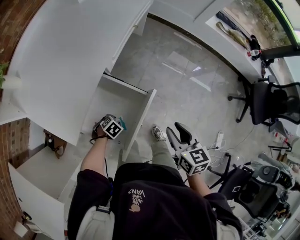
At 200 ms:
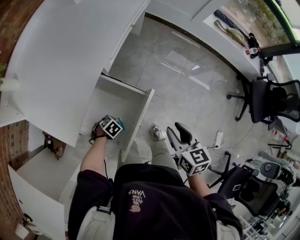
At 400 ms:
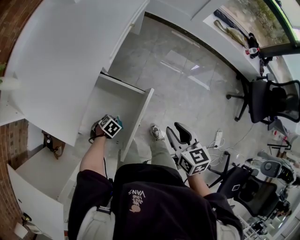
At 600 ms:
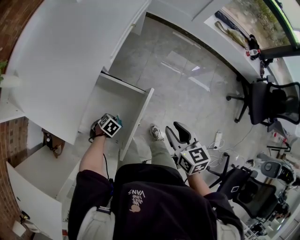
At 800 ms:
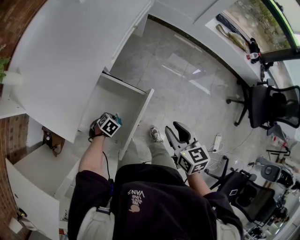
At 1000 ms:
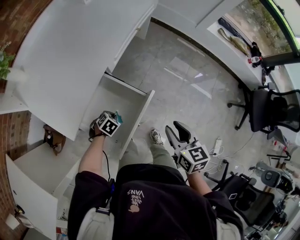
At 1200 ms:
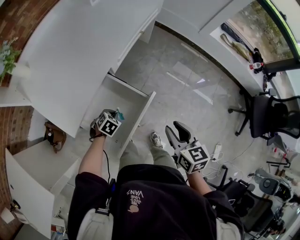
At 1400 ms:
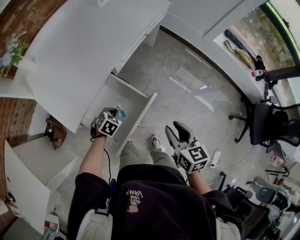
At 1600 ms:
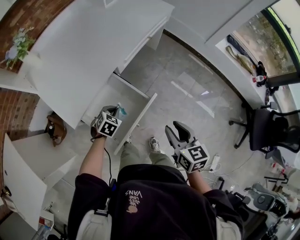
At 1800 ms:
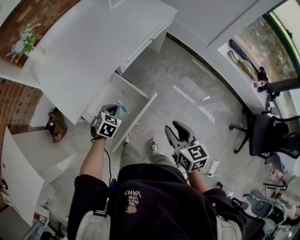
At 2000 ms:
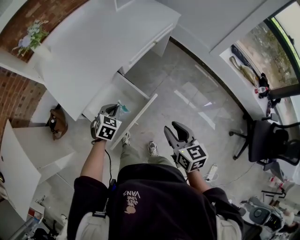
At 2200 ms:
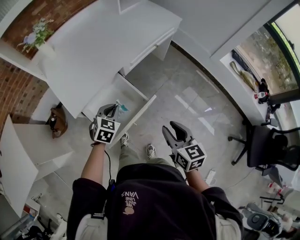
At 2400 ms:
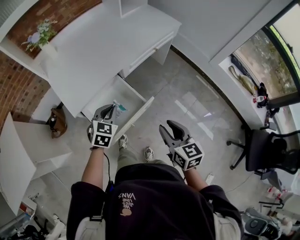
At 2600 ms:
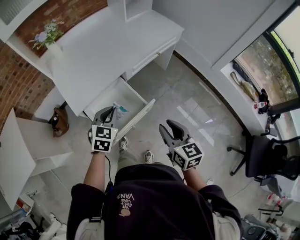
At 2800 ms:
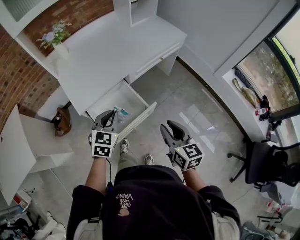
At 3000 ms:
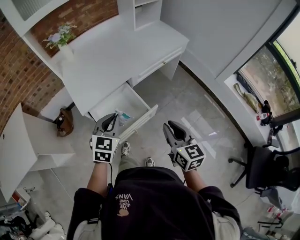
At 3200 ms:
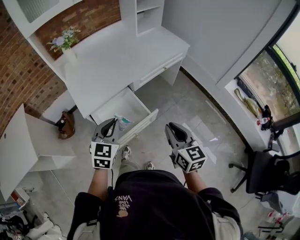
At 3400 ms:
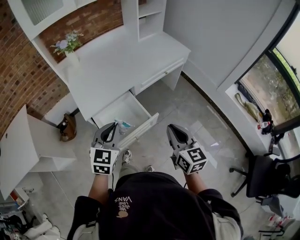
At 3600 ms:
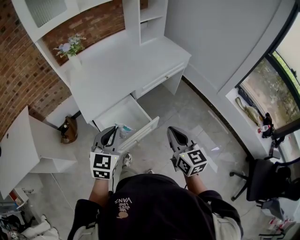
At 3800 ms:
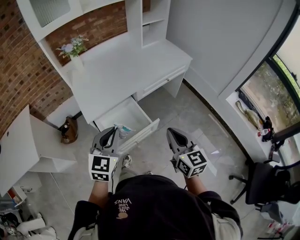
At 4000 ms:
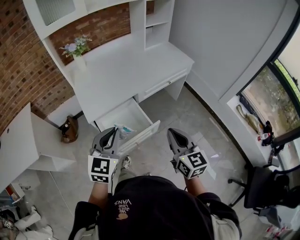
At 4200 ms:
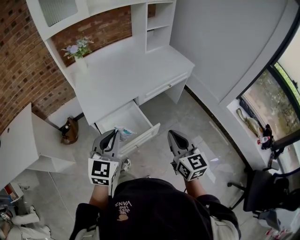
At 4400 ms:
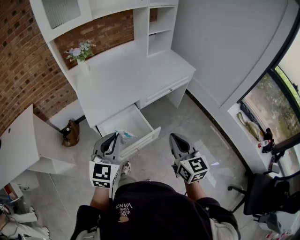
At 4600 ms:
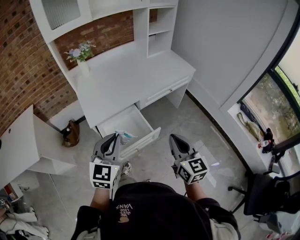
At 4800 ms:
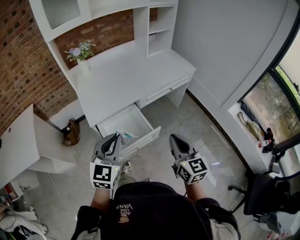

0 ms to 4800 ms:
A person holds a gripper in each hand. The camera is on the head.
0 ms to 1600 ms: The left gripper heads upward, covering about 15 cm, swivels approximately 30 degrees, and closes up.
1600 ms to 3200 ms: The right gripper heads upward, covering some 10 cm, rotates some 20 degrees, and closes up. The left gripper is displaced upward and backward by approximately 30 cm, and angles its fingers upward, by roughly 30 degrees.
3200 ms to 4800 ms: The right gripper moves approximately 5 cm; the left gripper heads upward and backward, covering some 10 cm.

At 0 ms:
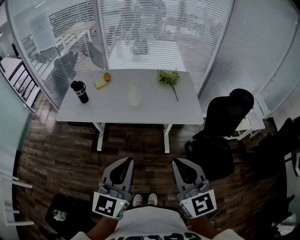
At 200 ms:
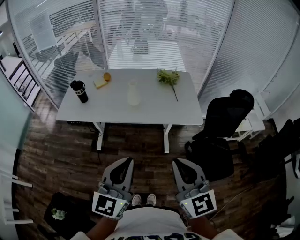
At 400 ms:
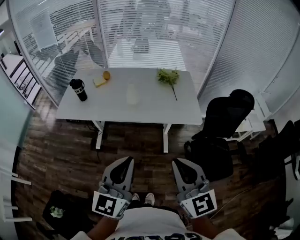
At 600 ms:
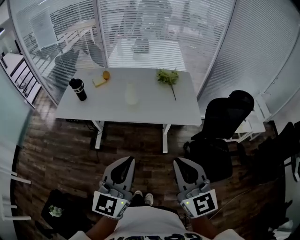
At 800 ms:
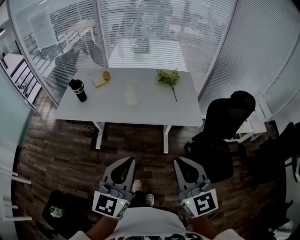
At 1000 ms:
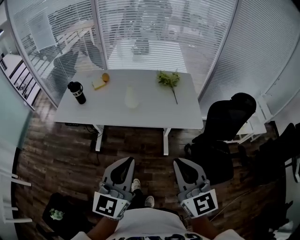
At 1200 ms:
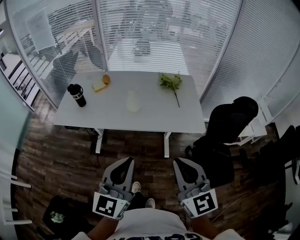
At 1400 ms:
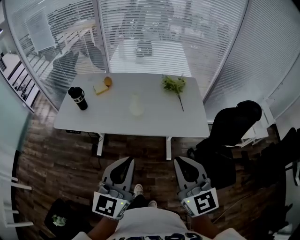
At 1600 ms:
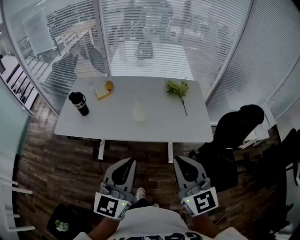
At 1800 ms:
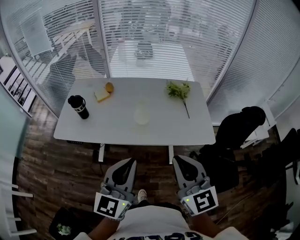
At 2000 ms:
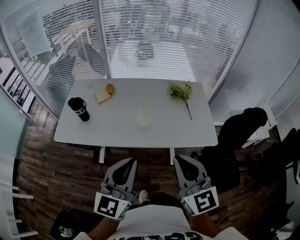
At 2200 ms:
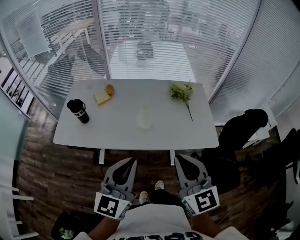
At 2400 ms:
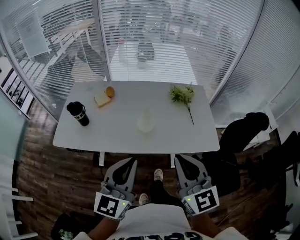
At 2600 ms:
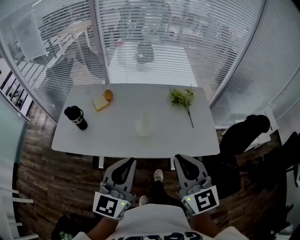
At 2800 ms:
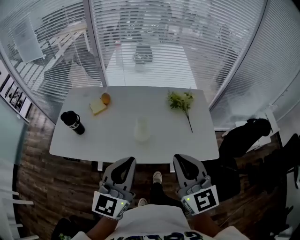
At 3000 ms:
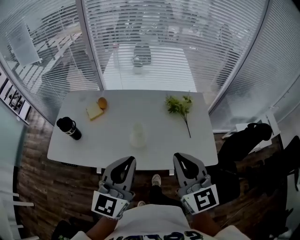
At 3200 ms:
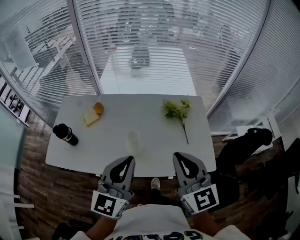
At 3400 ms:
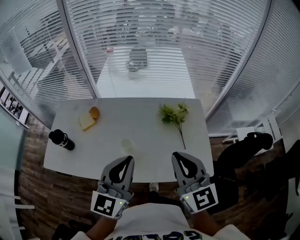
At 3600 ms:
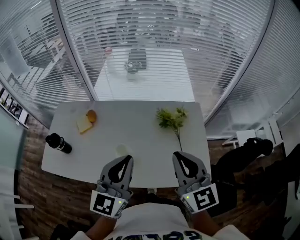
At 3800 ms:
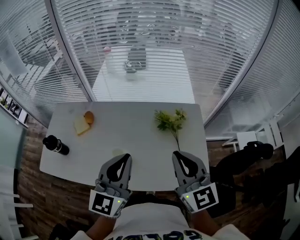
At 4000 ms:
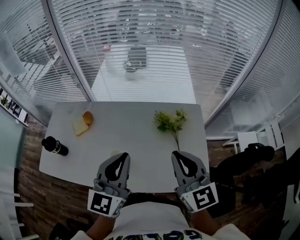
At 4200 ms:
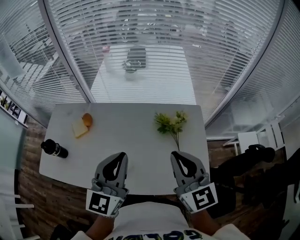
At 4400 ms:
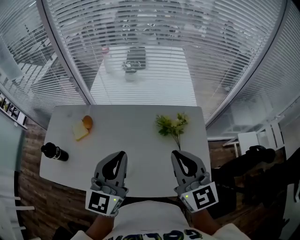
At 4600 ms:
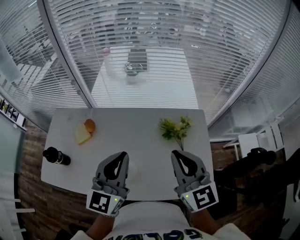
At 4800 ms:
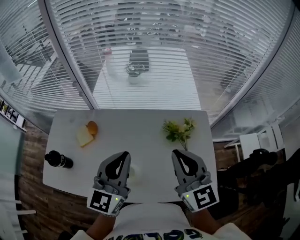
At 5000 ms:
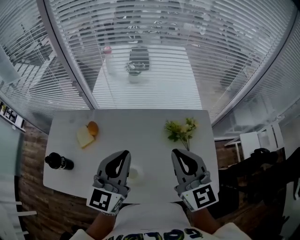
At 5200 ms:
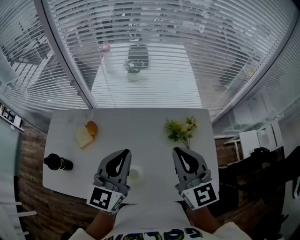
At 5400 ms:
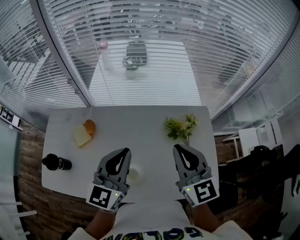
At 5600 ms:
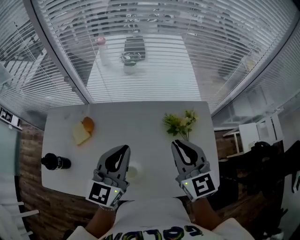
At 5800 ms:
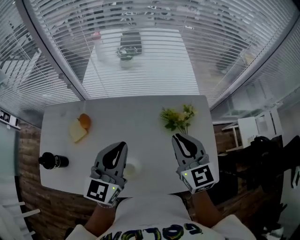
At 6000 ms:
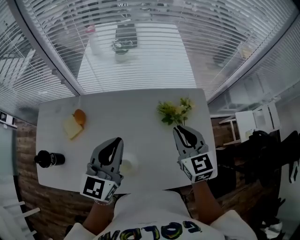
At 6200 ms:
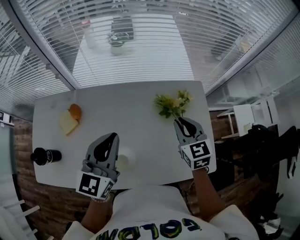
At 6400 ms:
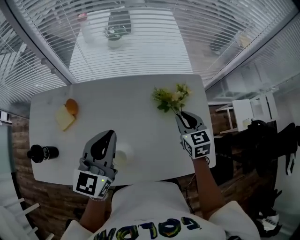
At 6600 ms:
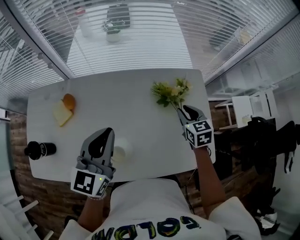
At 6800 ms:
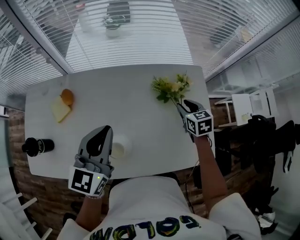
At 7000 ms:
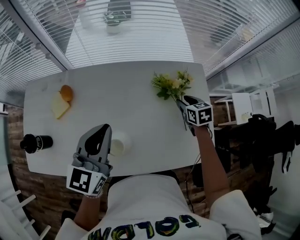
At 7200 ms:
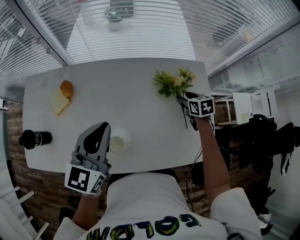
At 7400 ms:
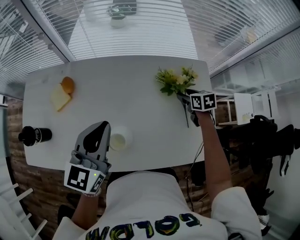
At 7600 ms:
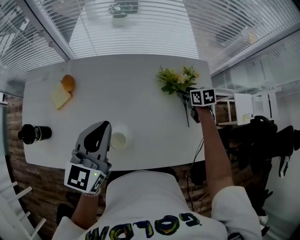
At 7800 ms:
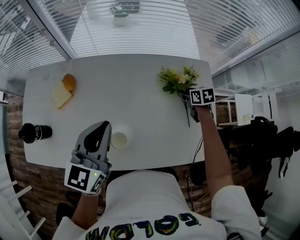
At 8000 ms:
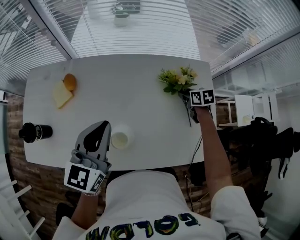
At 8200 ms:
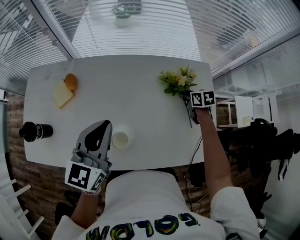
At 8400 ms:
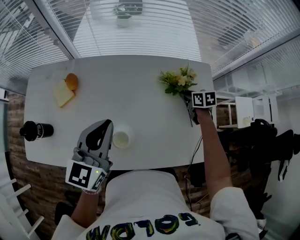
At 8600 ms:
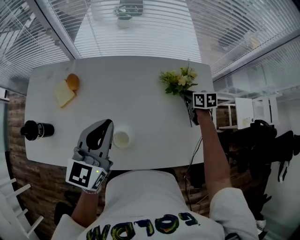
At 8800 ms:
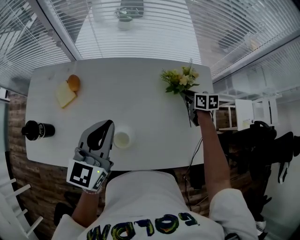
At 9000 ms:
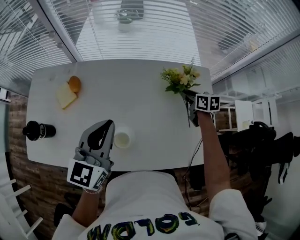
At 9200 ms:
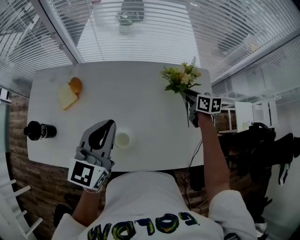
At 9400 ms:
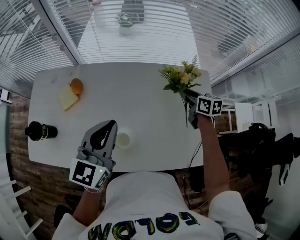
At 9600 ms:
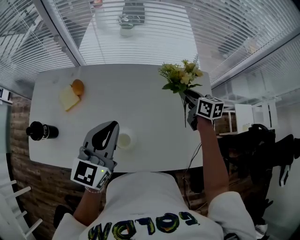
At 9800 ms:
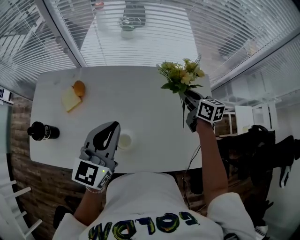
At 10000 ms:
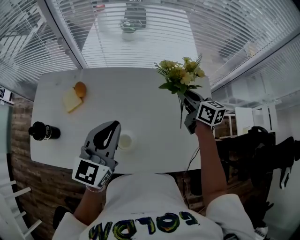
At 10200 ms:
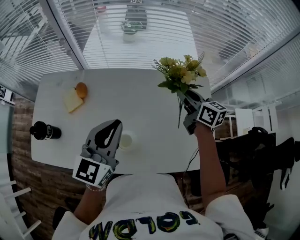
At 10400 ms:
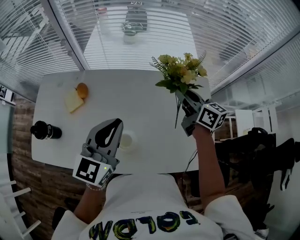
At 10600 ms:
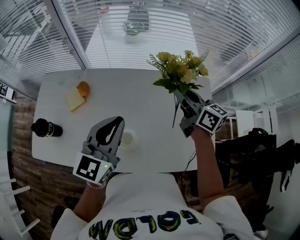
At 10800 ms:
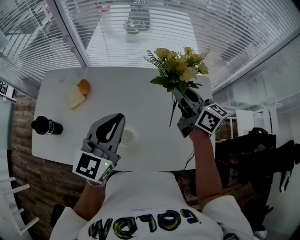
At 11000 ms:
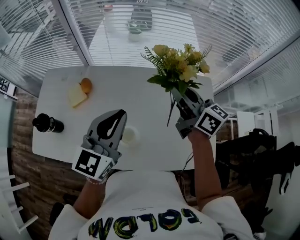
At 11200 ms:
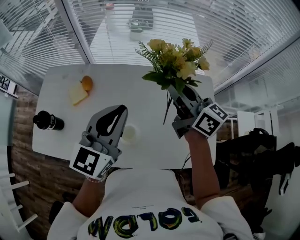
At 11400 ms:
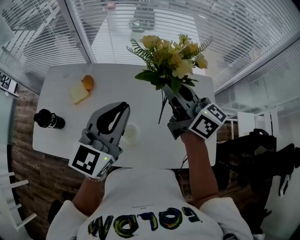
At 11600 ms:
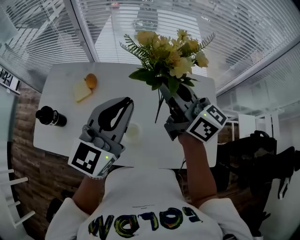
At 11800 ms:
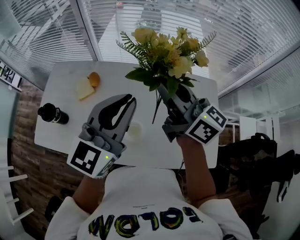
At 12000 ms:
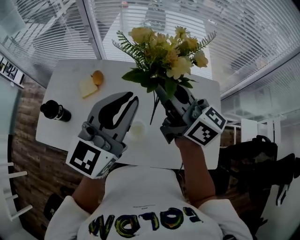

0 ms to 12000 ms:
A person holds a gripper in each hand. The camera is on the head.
0 ms to 1600 ms: The two grippers go roughly 15 cm forward.
1600 ms to 3000 ms: Both grippers move forward, approximately 20 cm.
3000 ms to 4400 ms: The right gripper shifts approximately 20 cm forward and to the right, while the left gripper goes roughly 20 cm forward.
4400 ms to 6000 ms: The left gripper travels forward and downward by about 10 cm. Meanwhile the right gripper travels downward and forward by approximately 15 cm.
6000 ms to 7600 ms: The right gripper travels downward, to the right and forward by approximately 25 cm, points its fingers about 30 degrees further downward, and opens. Meanwhile the left gripper moves roughly 5 cm.
7600 ms to 9000 ms: The right gripper shifts by approximately 5 cm, and closes.
9000 ms to 10400 ms: The right gripper shifts about 20 cm upward and to the left, and points its fingers roughly 30 degrees further upward.
10400 ms to 12000 ms: The right gripper shifts approximately 25 cm to the left, upward and backward, and changes its angle by approximately 30 degrees; the left gripper goes roughly 10 cm upward.

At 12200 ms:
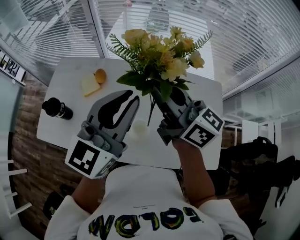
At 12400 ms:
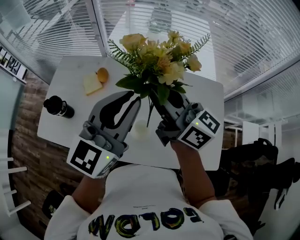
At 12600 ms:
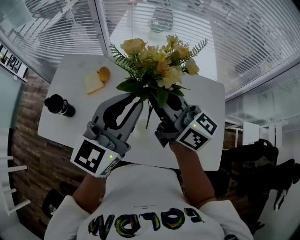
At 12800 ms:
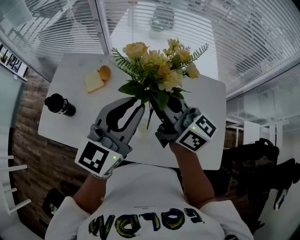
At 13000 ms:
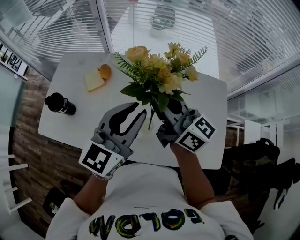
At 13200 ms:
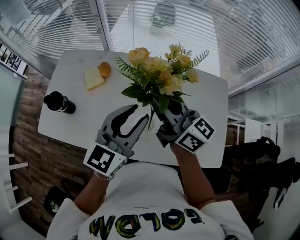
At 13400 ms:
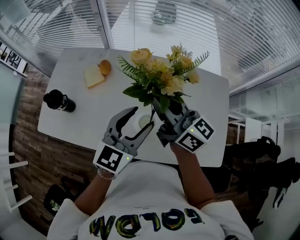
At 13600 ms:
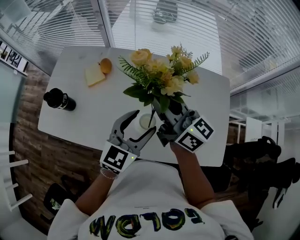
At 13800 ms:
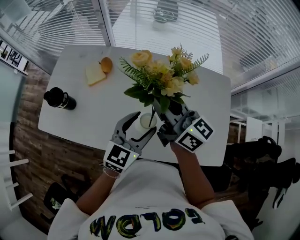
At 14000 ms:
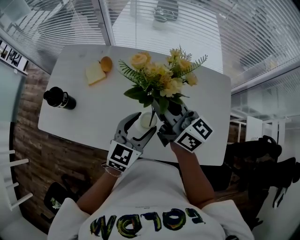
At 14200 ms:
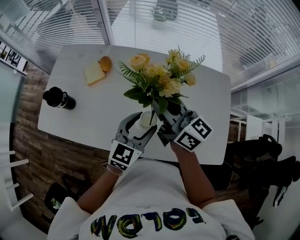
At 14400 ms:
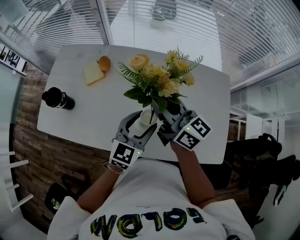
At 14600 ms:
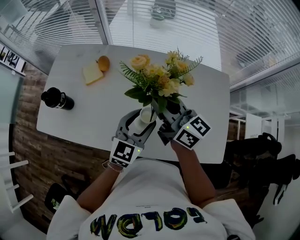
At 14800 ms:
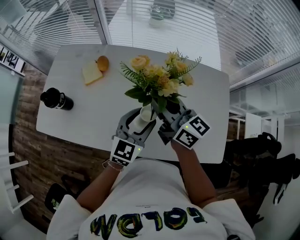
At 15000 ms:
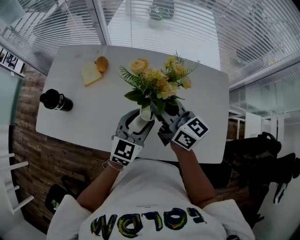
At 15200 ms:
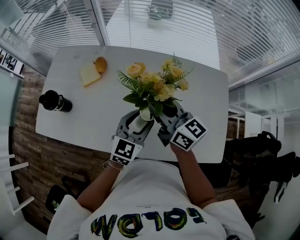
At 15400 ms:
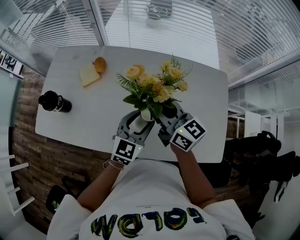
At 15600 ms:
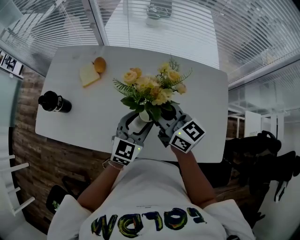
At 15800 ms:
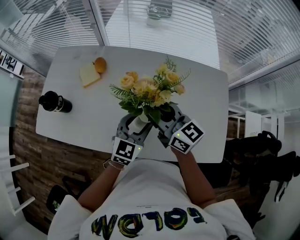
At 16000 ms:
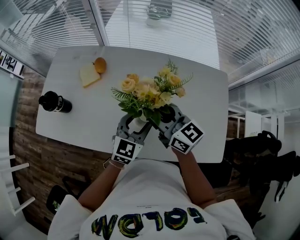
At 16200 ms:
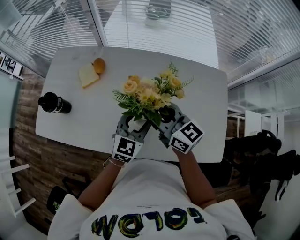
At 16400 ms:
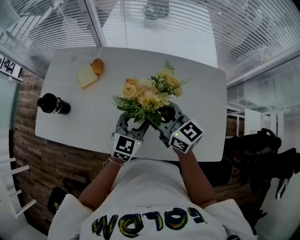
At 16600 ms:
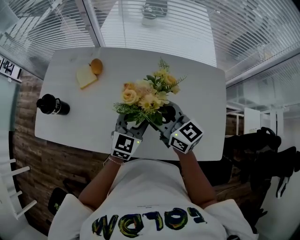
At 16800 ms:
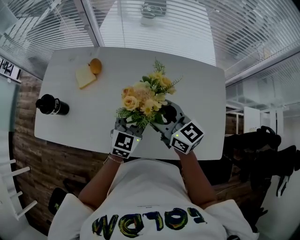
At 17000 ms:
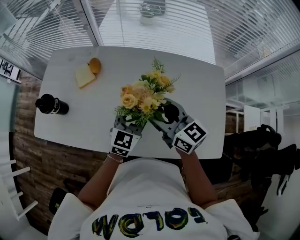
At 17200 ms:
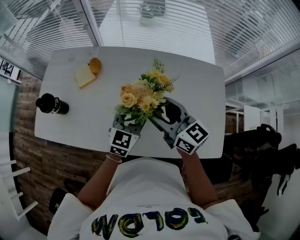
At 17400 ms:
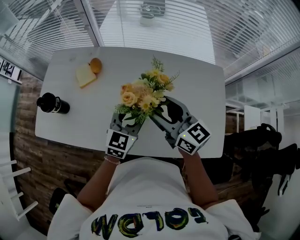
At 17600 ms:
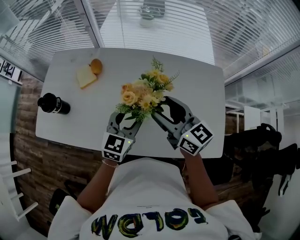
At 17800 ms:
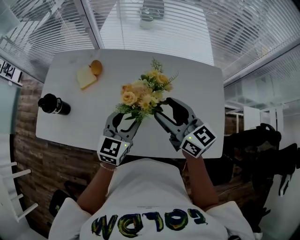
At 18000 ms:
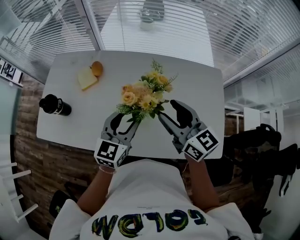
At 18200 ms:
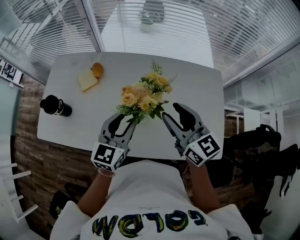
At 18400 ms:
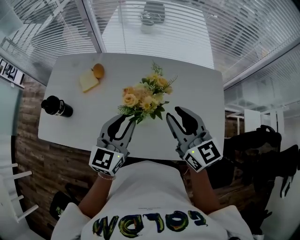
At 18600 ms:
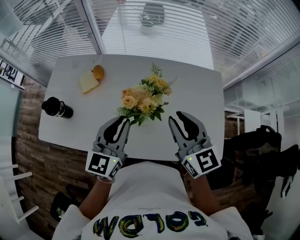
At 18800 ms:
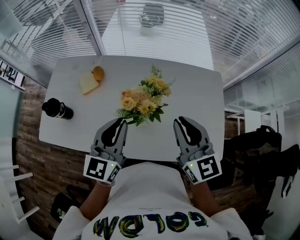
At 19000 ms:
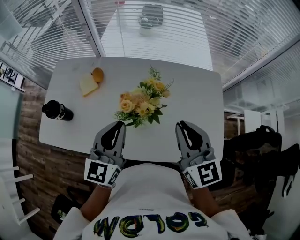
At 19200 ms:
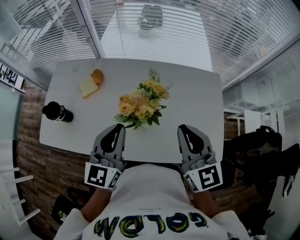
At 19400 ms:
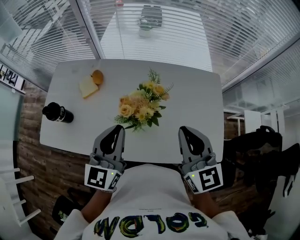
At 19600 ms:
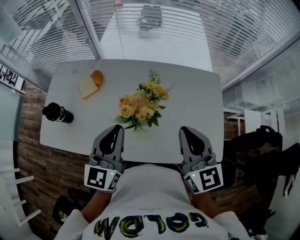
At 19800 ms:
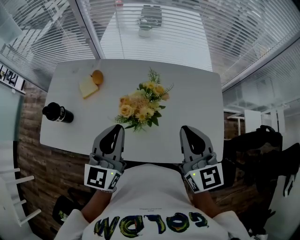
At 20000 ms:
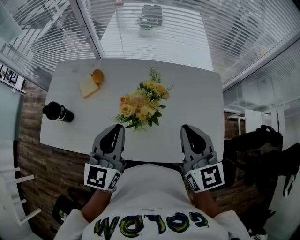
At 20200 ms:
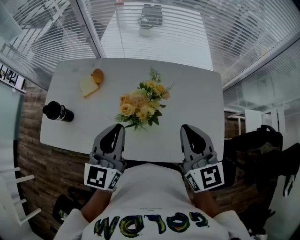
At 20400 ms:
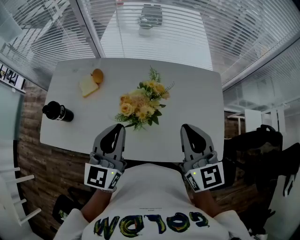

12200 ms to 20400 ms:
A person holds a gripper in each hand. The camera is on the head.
12200 ms to 13800 ms: The right gripper moves downward, approximately 10 cm. The left gripper travels downward by about 20 cm, swivels about 20 degrees, and opens.
13800 ms to 15400 ms: The right gripper is displaced downward by some 5 cm, while the left gripper changes place by approximately 5 cm.
15400 ms to 17200 ms: The right gripper opens.
17200 ms to 18800 ms: The left gripper is displaced upward, to the left and backward by some 15 cm, and closes up; the right gripper travels upward, to the right and backward by approximately 10 cm, turns by about 30 degrees, and closes its fingers.
18800 ms to 20400 ms: There are only small adjustments of the grippers.
